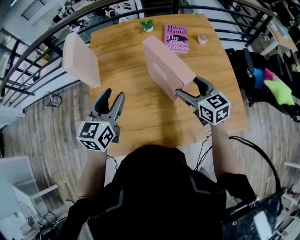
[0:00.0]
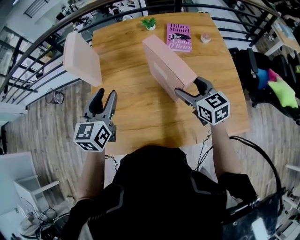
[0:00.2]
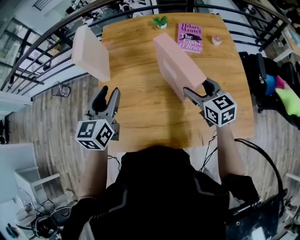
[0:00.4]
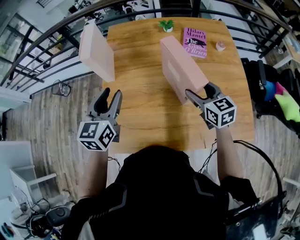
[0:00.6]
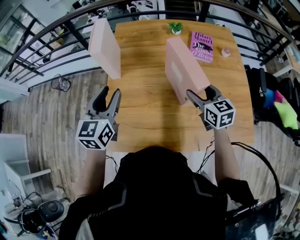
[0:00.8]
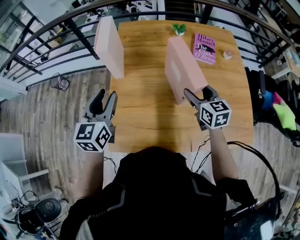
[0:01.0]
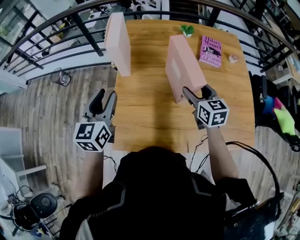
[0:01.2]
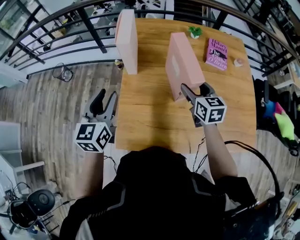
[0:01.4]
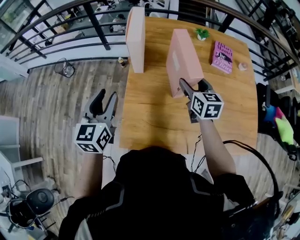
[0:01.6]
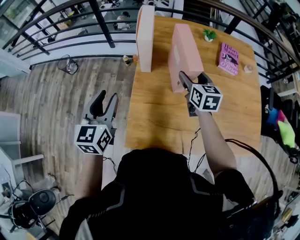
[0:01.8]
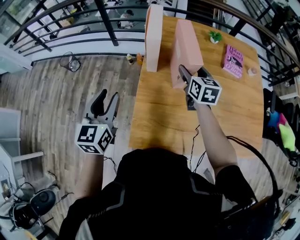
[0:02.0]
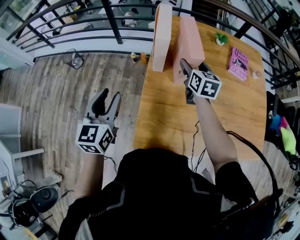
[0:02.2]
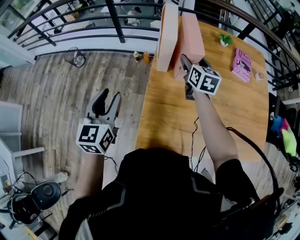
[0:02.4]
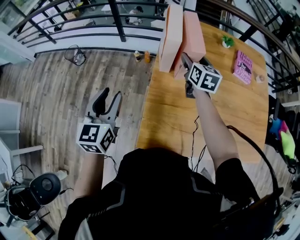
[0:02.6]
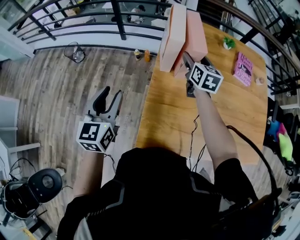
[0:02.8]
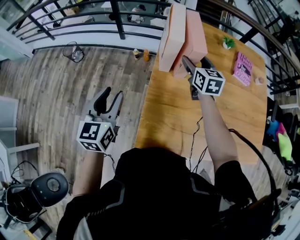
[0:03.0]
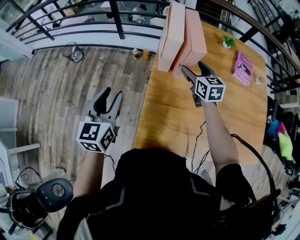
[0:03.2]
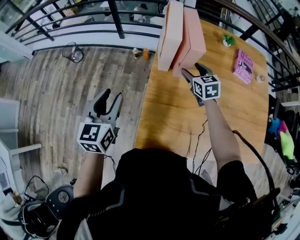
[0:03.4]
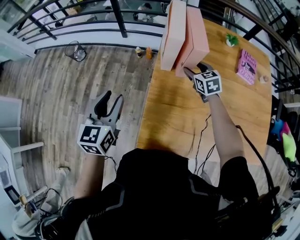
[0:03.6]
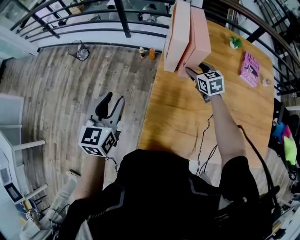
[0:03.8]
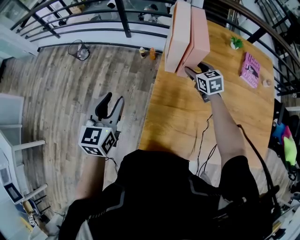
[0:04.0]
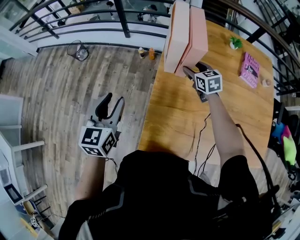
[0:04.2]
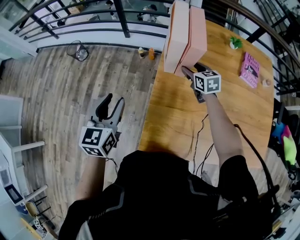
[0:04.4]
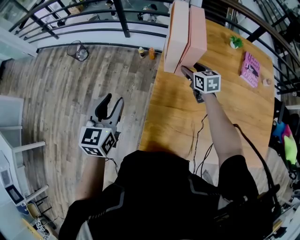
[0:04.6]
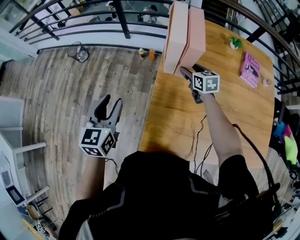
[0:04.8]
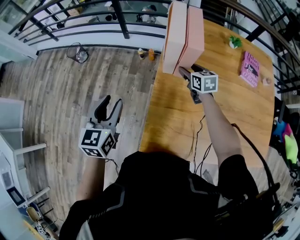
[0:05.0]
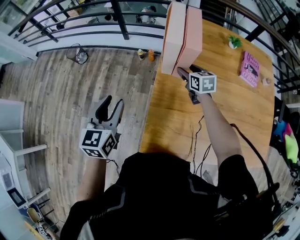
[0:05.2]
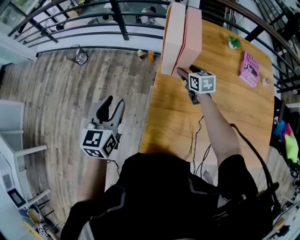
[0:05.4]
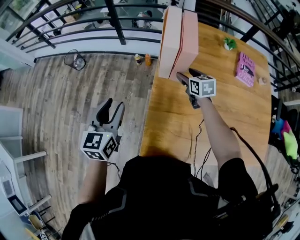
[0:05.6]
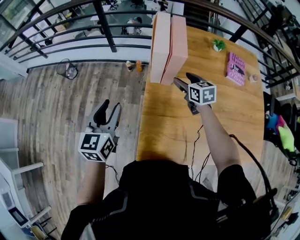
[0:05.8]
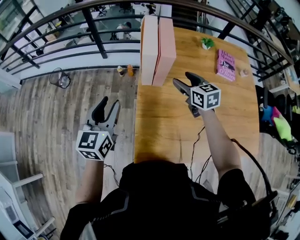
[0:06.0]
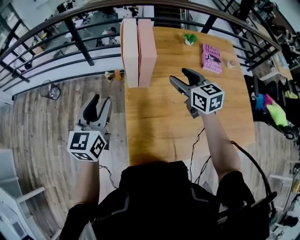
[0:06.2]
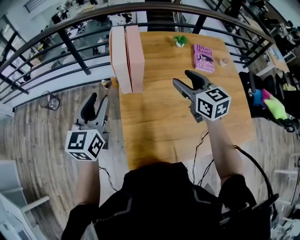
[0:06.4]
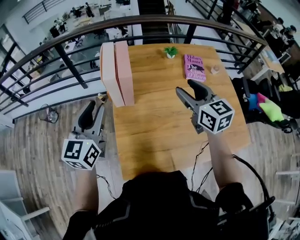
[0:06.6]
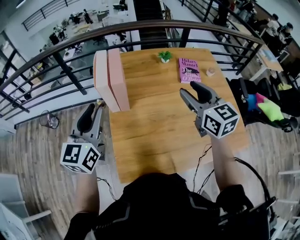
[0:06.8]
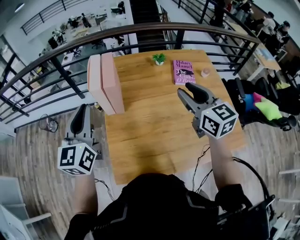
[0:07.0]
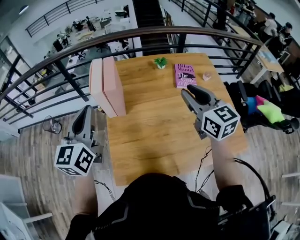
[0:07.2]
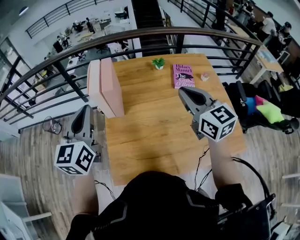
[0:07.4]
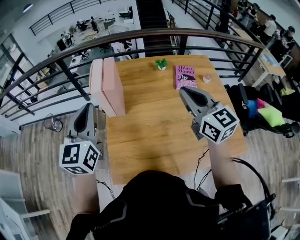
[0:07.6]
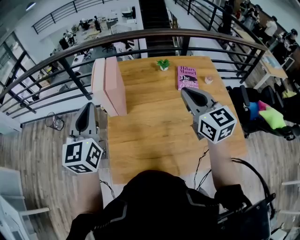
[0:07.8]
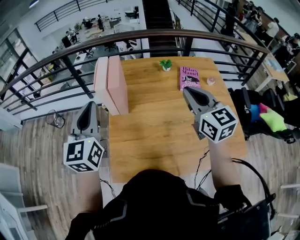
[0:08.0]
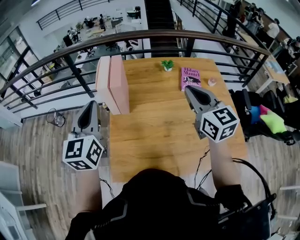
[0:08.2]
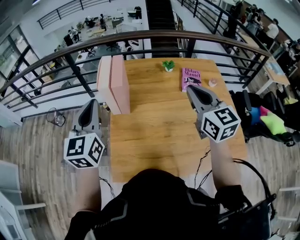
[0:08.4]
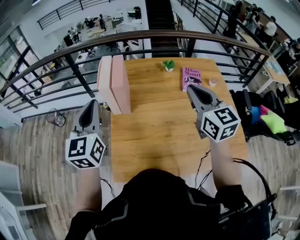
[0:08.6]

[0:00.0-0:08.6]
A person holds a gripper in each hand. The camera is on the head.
0:00.0 to 0:01.4: The right gripper travels to the left and forward by about 20 cm, while the left gripper shifts about 25 cm to the left.
0:01.4 to 0:02.8: The left gripper shifts approximately 15 cm to the left; the right gripper is displaced to the left and forward by roughly 25 cm.
0:02.8 to 0:04.4: The right gripper goes about 10 cm downward, and changes its angle by some 30 degrees.
0:04.4 to 0:05.8: The grippers move only a little.
0:05.8 to 0:07.2: The right gripper travels upward, to the right and backward by about 40 cm, turns by some 30 degrees, and closes up; the left gripper moves to the right and upward, about 25 cm, and closes its fingers.
0:07.2 to 0:08.6: The grippers move only a little.

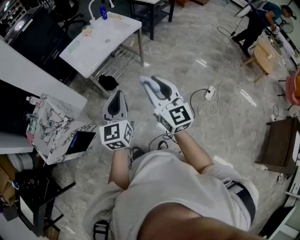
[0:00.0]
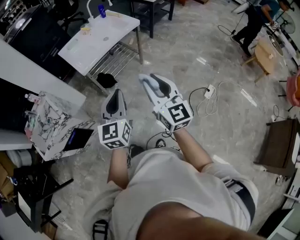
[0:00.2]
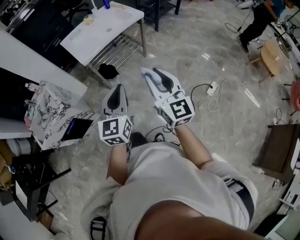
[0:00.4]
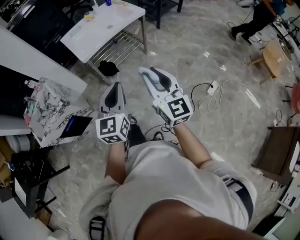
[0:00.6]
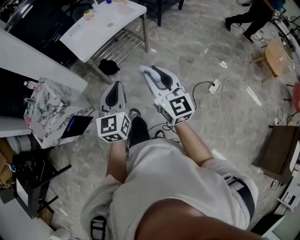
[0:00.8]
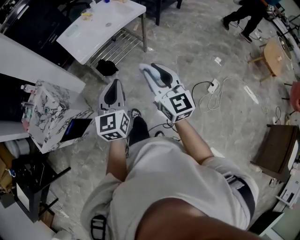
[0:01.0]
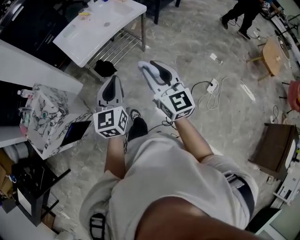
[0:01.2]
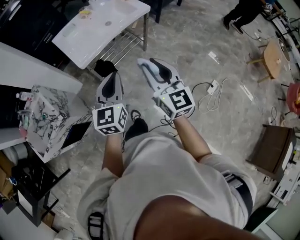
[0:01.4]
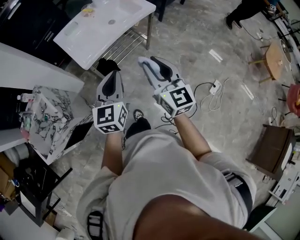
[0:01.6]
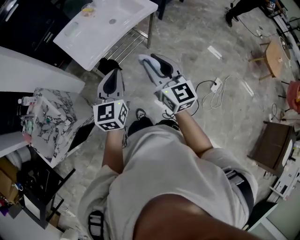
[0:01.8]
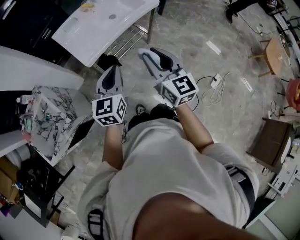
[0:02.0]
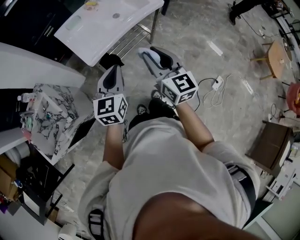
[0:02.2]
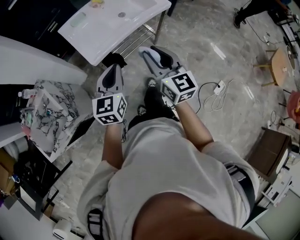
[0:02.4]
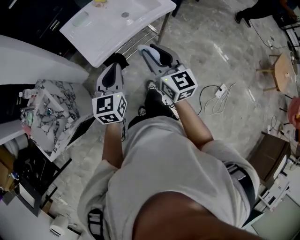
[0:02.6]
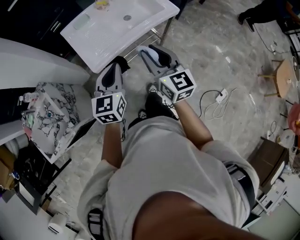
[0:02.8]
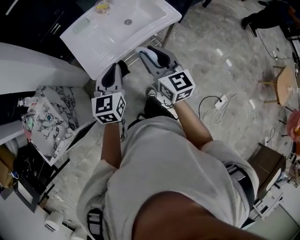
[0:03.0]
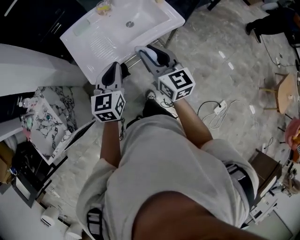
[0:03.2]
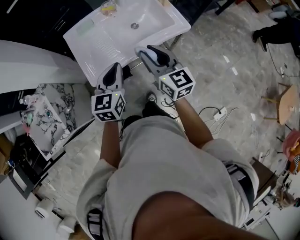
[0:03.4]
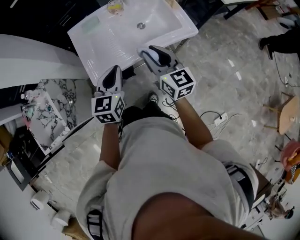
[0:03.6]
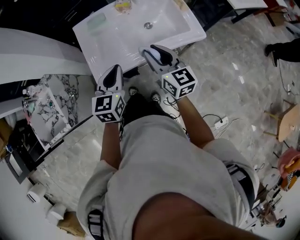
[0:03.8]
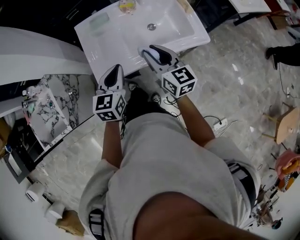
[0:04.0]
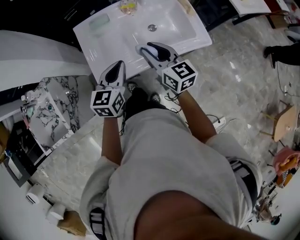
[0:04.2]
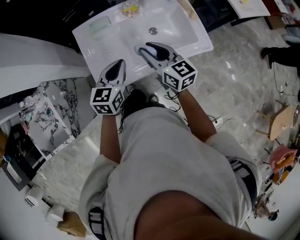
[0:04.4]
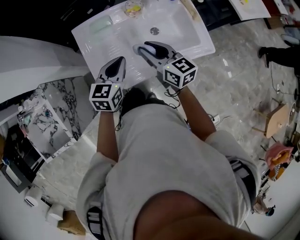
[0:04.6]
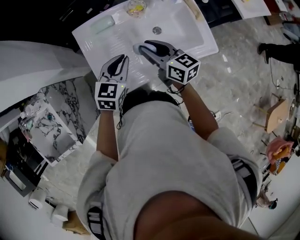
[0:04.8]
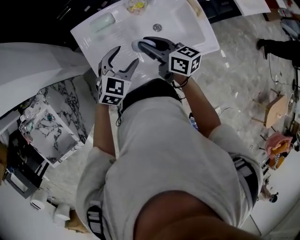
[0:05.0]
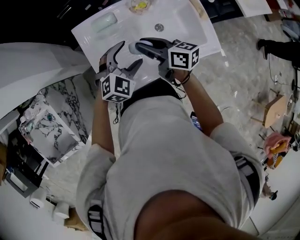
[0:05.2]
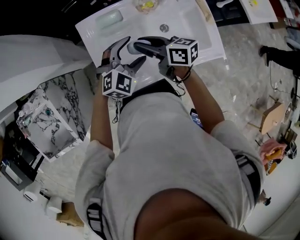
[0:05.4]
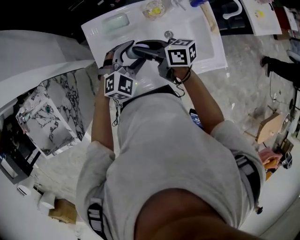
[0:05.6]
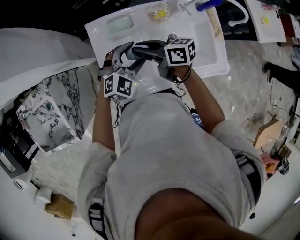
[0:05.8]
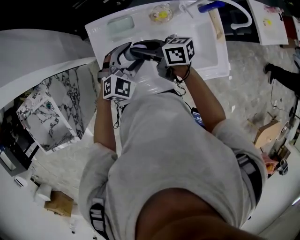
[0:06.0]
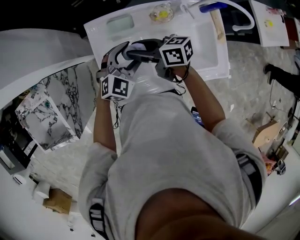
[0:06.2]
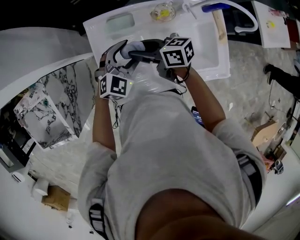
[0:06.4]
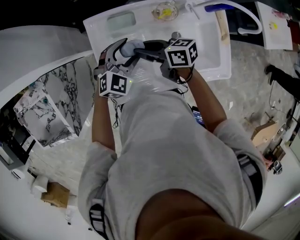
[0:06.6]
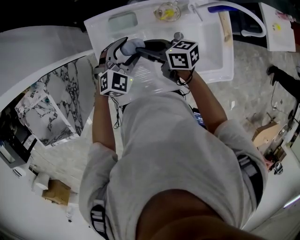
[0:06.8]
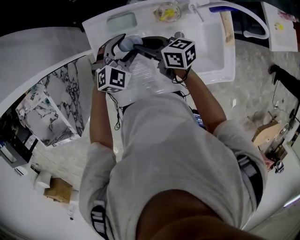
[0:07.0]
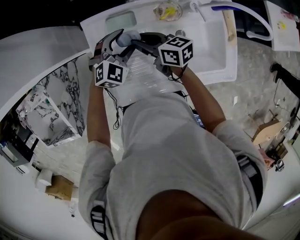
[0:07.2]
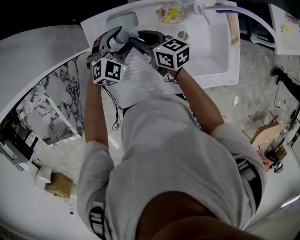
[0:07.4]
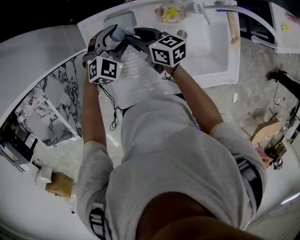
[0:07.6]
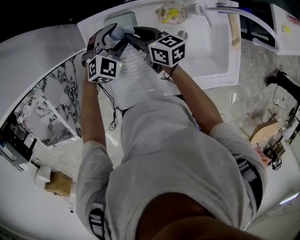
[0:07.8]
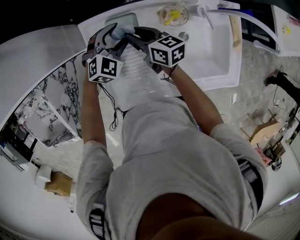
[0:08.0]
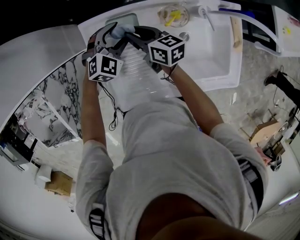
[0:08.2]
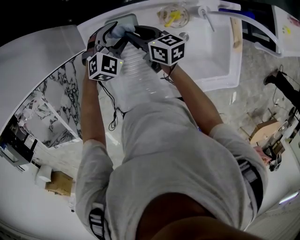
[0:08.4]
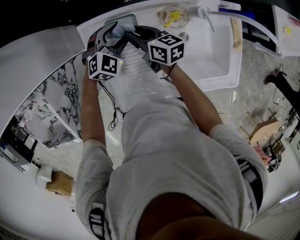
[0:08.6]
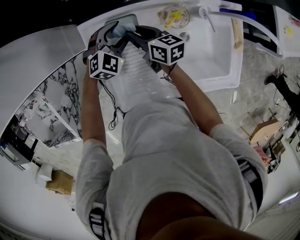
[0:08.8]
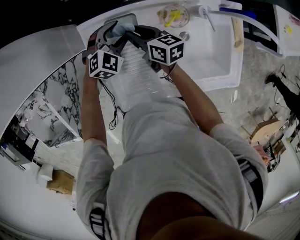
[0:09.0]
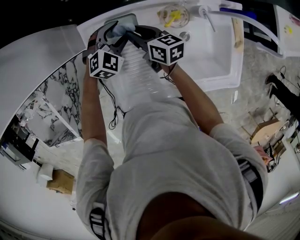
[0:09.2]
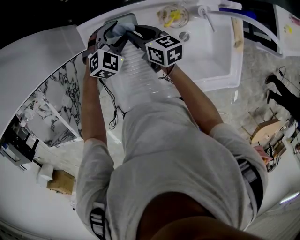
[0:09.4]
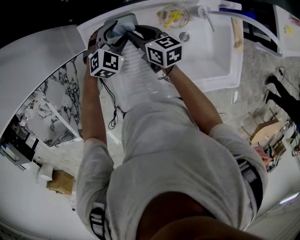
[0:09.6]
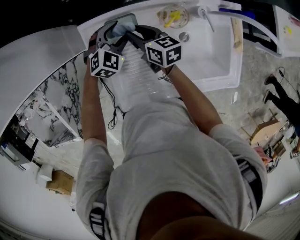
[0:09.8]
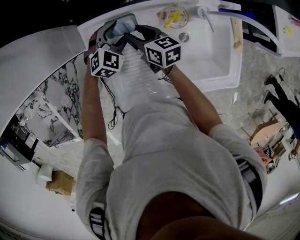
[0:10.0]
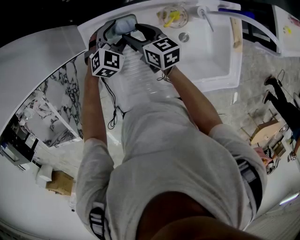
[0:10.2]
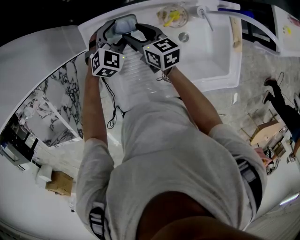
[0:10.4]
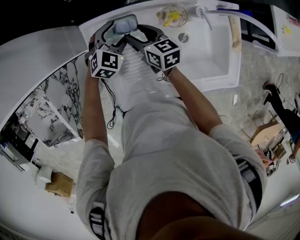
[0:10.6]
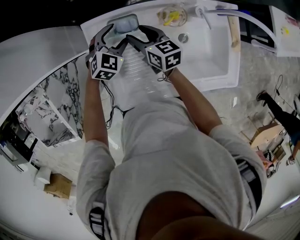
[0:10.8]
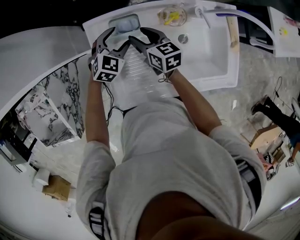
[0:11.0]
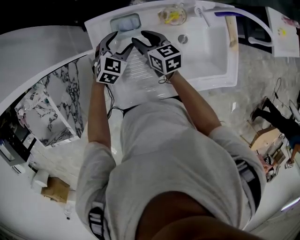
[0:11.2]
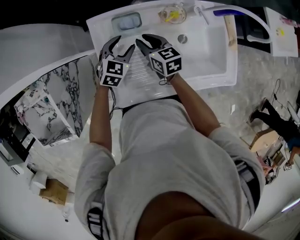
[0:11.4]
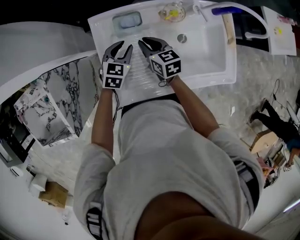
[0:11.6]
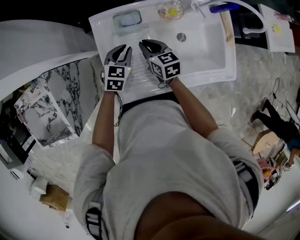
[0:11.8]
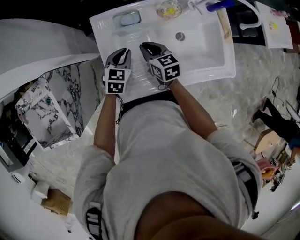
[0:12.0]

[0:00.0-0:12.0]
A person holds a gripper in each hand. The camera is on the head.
0:00.0 to 0:01.6: Both grippers move forward, roughly 20 cm.
0:01.6 to 0:03.0: Both grippers travel together forward, roughly 20 cm.
0:03.0 to 0:04.4: Both grippers travel together forward, roughly 25 cm. The right gripper turns by about 20 degrees.
0:04.4 to 0:06.0: The right gripper heads forward, to the left and downward, covering about 20 cm, and rotates about 50 degrees. Meanwhile the left gripper moves forward, approximately 15 cm, swivels about 40 degrees, and opens its fingers.
0:06.0 to 0:07.6: The left gripper heads forward and downward, covering approximately 15 cm. Meanwhile the right gripper shifts approximately 15 cm downward and forward.
0:07.6 to 0:09.0: The grippers move only a little.
0:09.0 to 0:10.4: The right gripper opens up.
0:10.4 to 0:12.0: Both grippers move backward, some 15 cm. The left gripper turns by some 30 degrees, and closes its fingers. The right gripper closes.

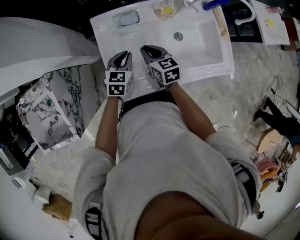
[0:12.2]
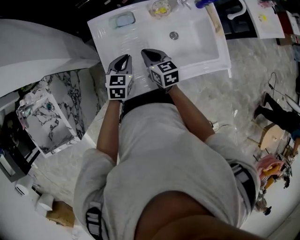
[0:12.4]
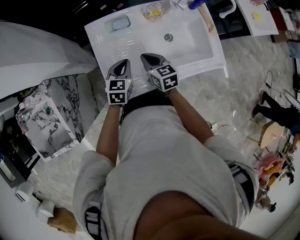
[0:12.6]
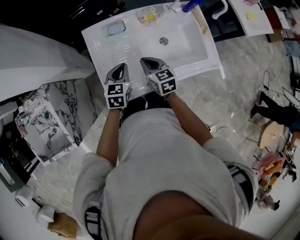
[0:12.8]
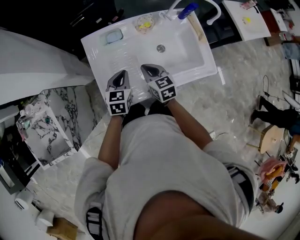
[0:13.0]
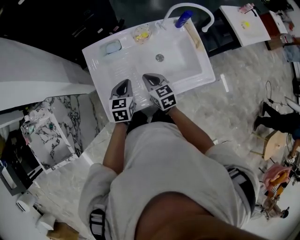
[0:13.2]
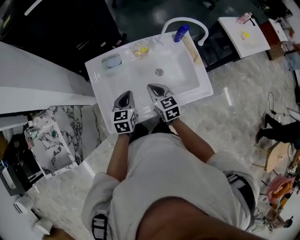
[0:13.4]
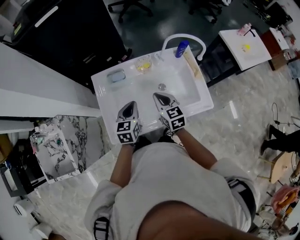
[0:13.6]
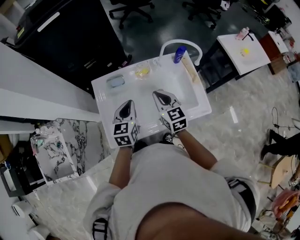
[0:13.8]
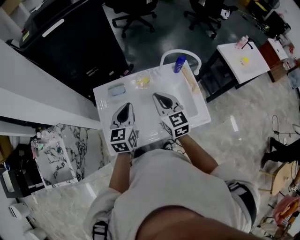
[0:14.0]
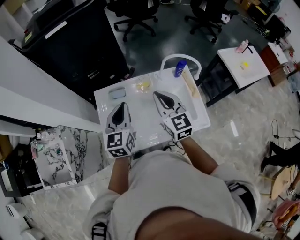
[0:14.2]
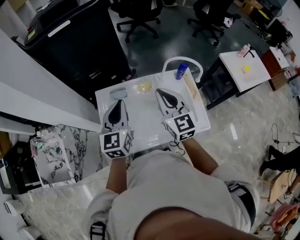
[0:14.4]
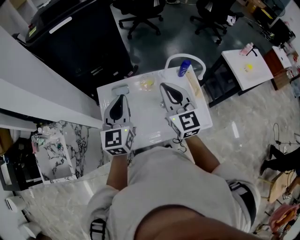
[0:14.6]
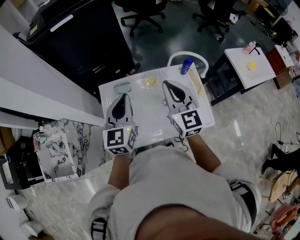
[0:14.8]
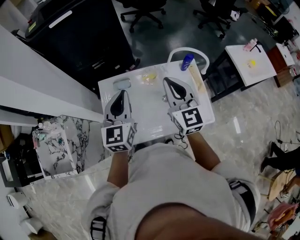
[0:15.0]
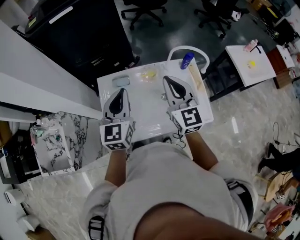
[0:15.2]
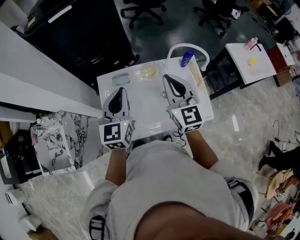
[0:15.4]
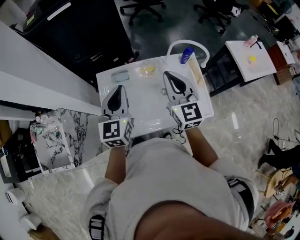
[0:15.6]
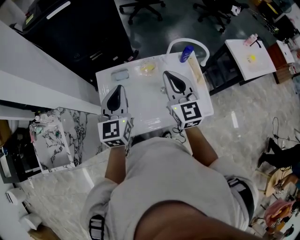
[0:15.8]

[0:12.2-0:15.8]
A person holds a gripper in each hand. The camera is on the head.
0:12.2 to 0:14.0: Both grippers travel together upward and to the right, roughly 25 cm. The right gripper rotates about 30 degrees; the left gripper swivels about 20 degrees.
0:14.0 to 0:15.8: The grippers both shift upward by approximately 10 cm.
